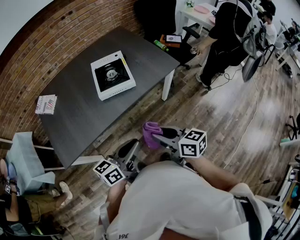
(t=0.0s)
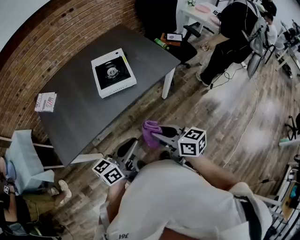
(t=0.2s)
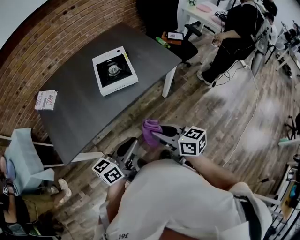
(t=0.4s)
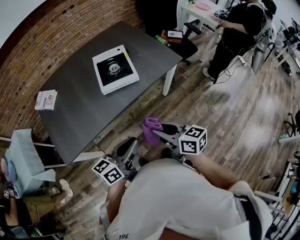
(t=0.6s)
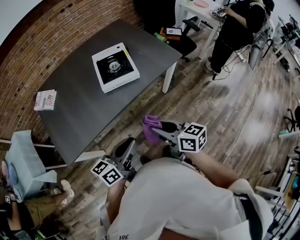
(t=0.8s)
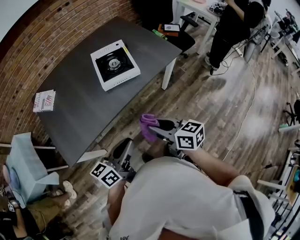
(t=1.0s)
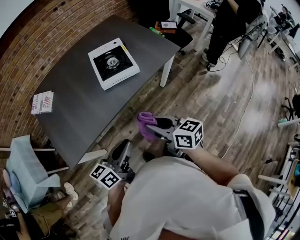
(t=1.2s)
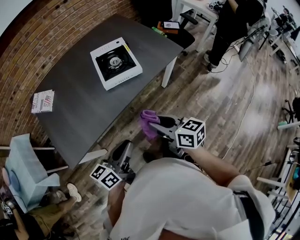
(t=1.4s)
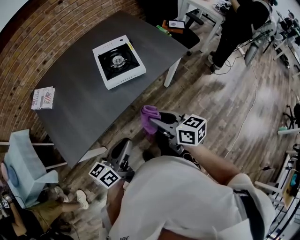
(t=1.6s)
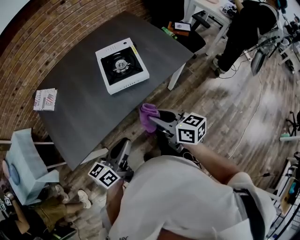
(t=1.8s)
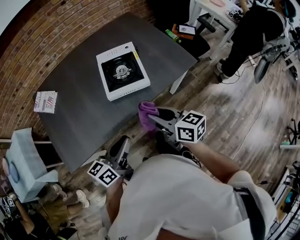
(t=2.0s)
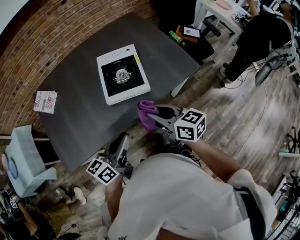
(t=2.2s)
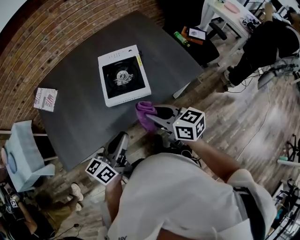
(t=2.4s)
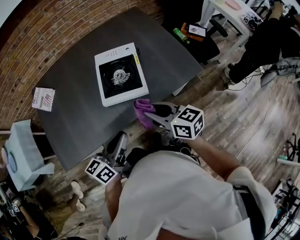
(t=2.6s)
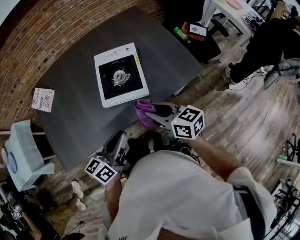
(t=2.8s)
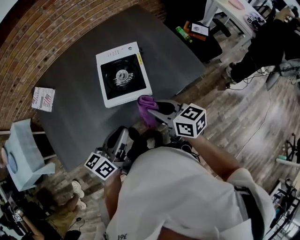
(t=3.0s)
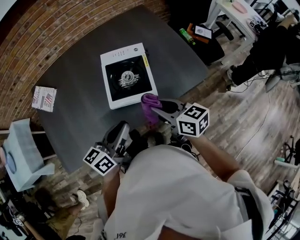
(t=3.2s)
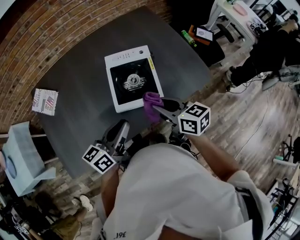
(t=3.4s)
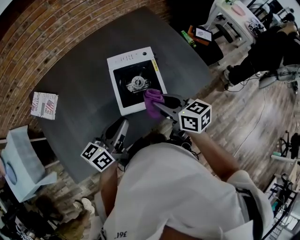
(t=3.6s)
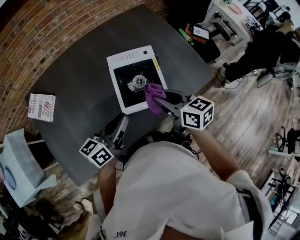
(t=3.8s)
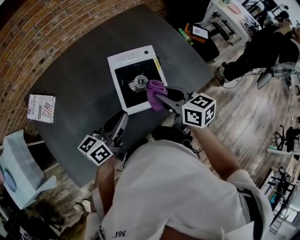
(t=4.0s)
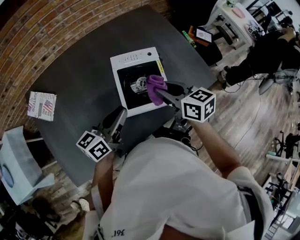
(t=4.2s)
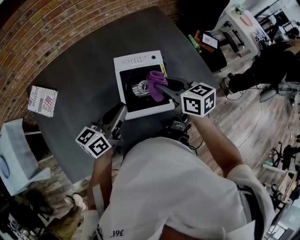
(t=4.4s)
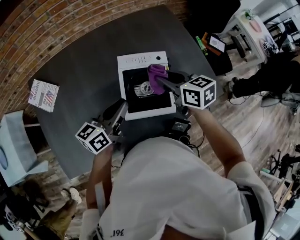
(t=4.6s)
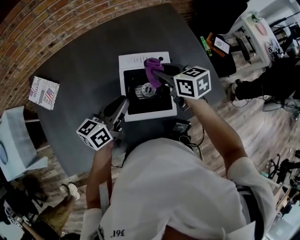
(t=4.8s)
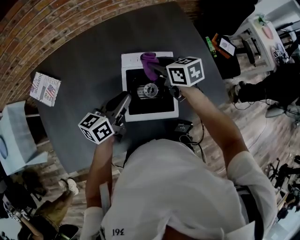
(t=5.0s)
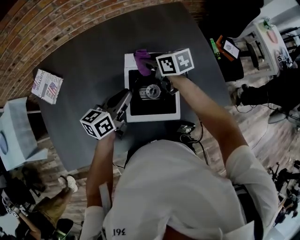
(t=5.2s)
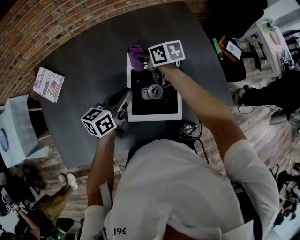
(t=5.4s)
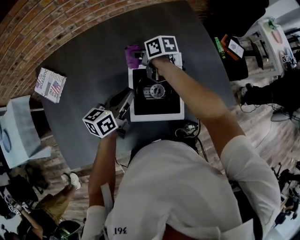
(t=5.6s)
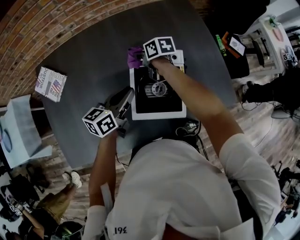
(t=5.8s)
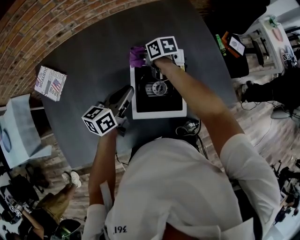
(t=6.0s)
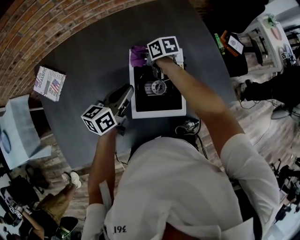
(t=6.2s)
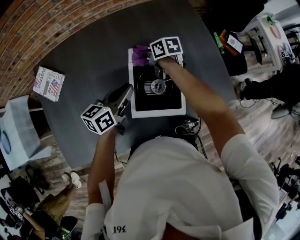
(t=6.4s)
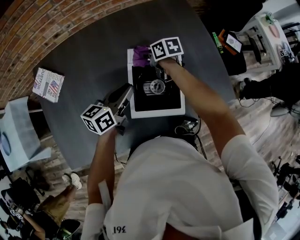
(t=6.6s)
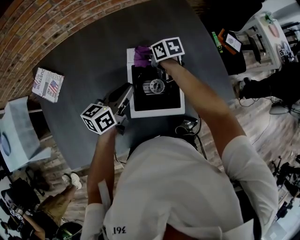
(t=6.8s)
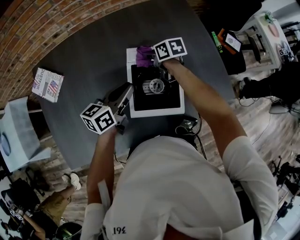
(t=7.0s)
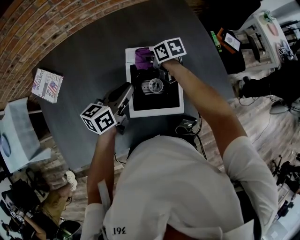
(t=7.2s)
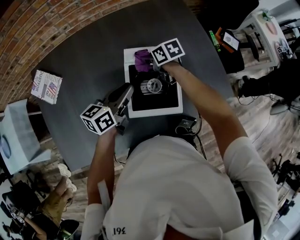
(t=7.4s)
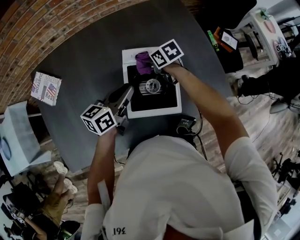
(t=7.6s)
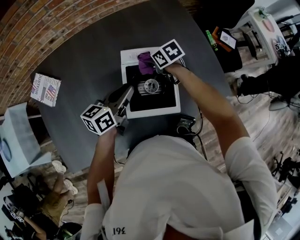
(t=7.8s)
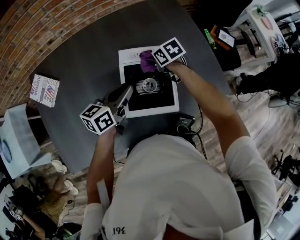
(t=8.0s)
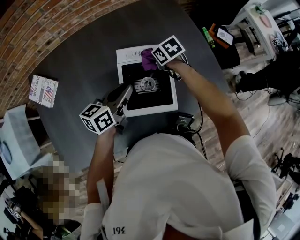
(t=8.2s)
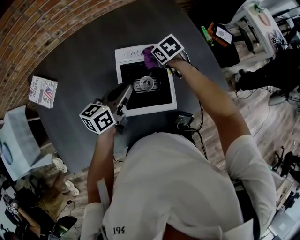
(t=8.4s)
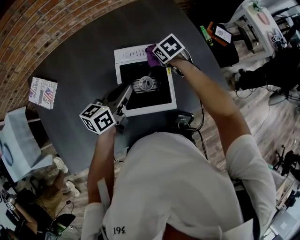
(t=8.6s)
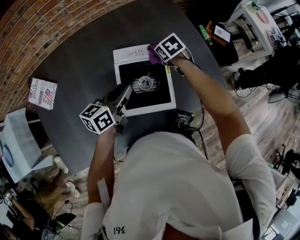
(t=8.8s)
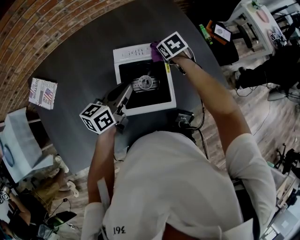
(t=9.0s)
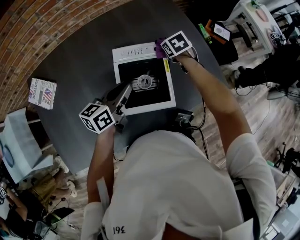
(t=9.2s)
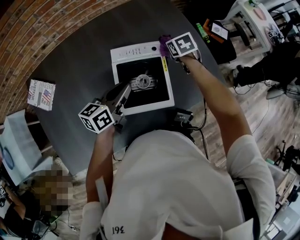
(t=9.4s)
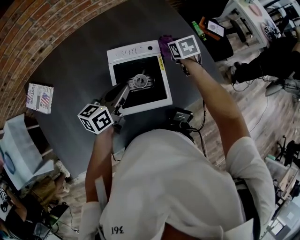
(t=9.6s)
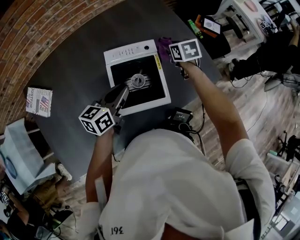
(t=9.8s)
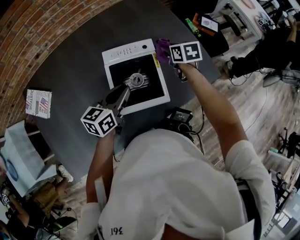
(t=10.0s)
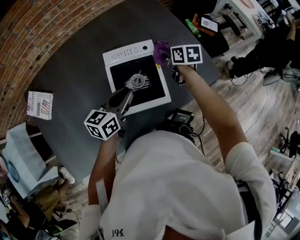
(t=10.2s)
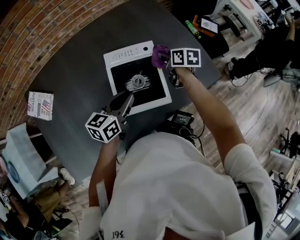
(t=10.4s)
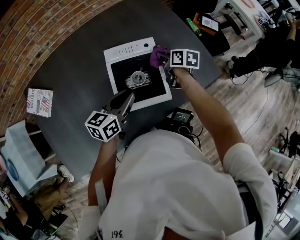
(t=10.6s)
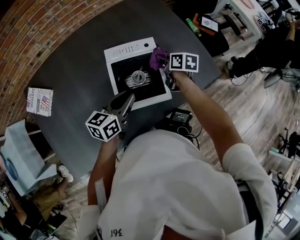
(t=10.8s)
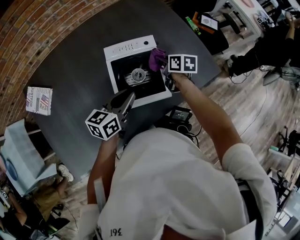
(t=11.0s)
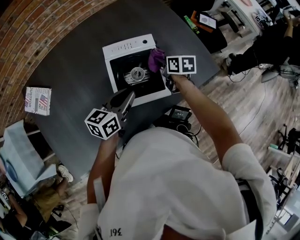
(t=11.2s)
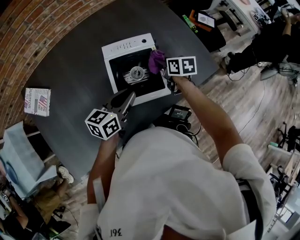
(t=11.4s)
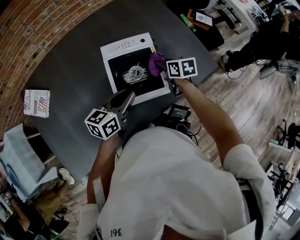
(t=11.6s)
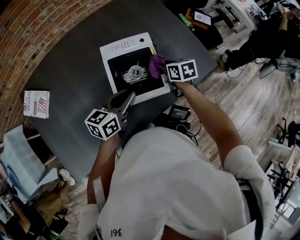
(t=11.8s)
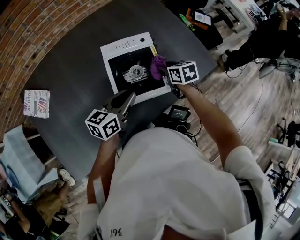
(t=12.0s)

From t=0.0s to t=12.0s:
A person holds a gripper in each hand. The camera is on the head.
From t=0.0s to t=1.6s: The right gripper moves to the left and forward, about 10 cm; the left gripper shifts about 15 cm to the left.
From t=1.6s to t=3.0s: The right gripper shifts about 20 cm forward. The left gripper shifts approximately 20 cm forward and to the right.
From t=3.0s to t=4.4s: The left gripper moves forward and to the left, about 20 cm. Meanwhile the right gripper moves forward, approximately 20 cm.
From t=4.4s to t=6.0s: The left gripper travels forward and downward by about 10 cm, while the right gripper moves forward, downward and to the left, approximately 30 cm, and swivels some 30 degrees.
From t=6.0s to t=7.6s: The right gripper is displaced backward by approximately 5 cm.
From t=7.6s to t=9.0s: The right gripper shifts approximately 10 cm to the right, and swivels approximately 20 degrees.
From t=9.0s to t=10.4s: The right gripper goes roughly 5 cm to the right, and rotates approximately 40 degrees; the left gripper shifts by roughly 5 cm.
From t=10.4s to t=12.0s: The right gripper shifts some 10 cm backward.

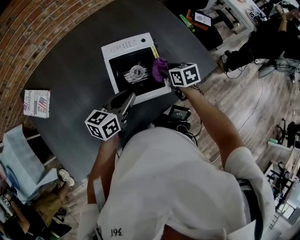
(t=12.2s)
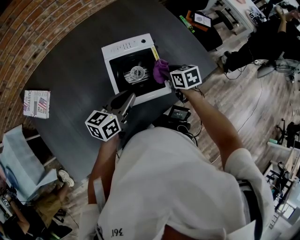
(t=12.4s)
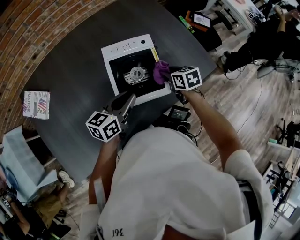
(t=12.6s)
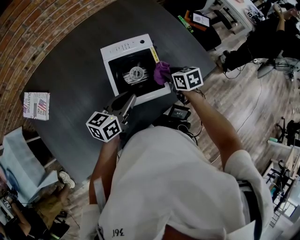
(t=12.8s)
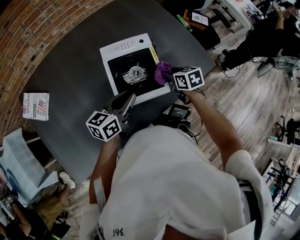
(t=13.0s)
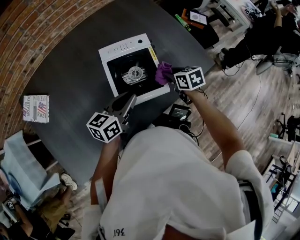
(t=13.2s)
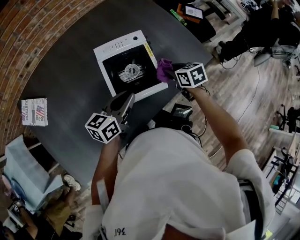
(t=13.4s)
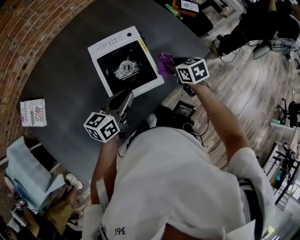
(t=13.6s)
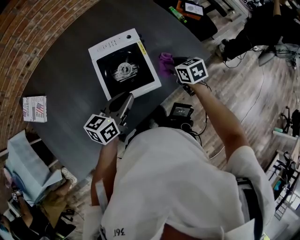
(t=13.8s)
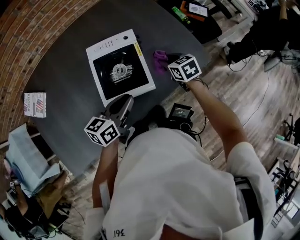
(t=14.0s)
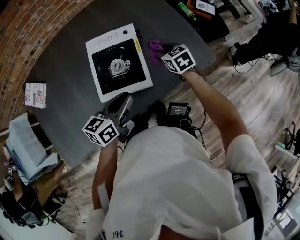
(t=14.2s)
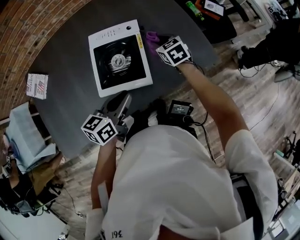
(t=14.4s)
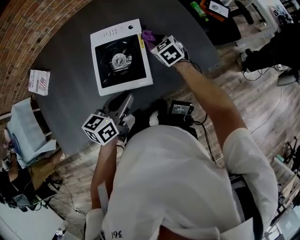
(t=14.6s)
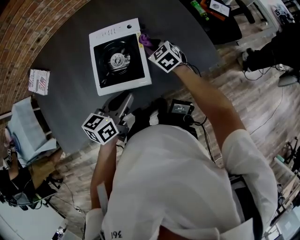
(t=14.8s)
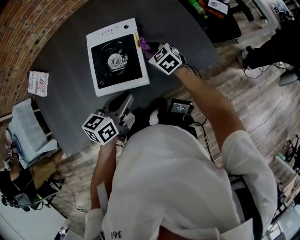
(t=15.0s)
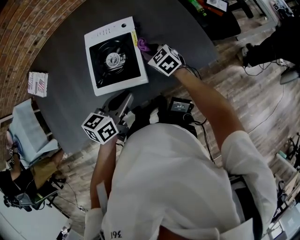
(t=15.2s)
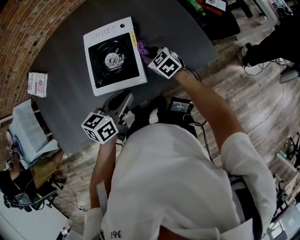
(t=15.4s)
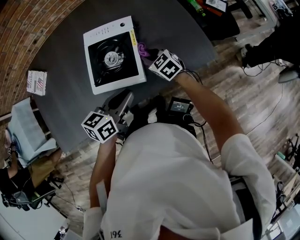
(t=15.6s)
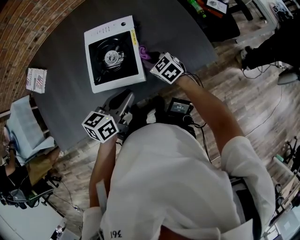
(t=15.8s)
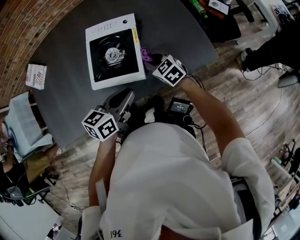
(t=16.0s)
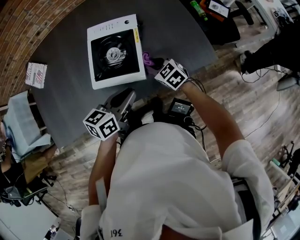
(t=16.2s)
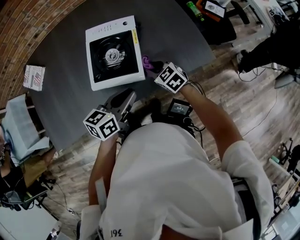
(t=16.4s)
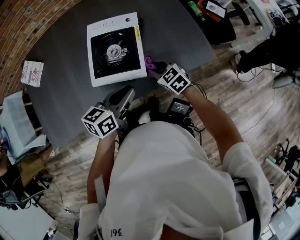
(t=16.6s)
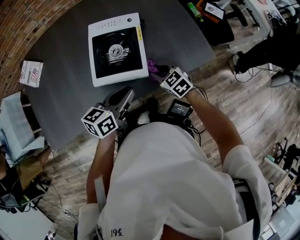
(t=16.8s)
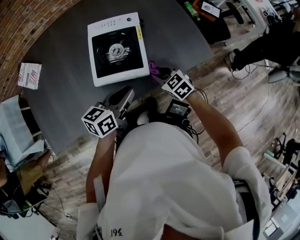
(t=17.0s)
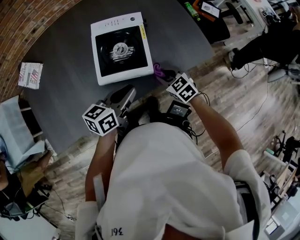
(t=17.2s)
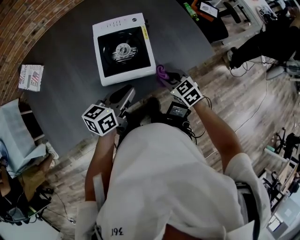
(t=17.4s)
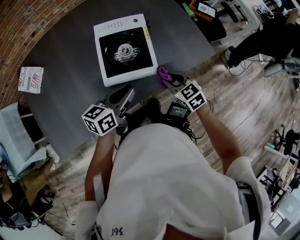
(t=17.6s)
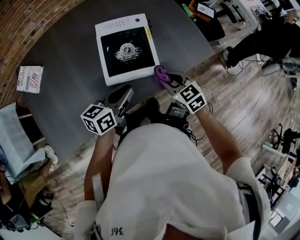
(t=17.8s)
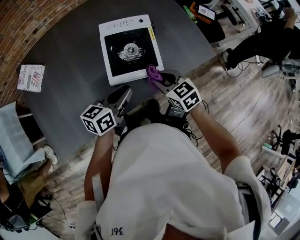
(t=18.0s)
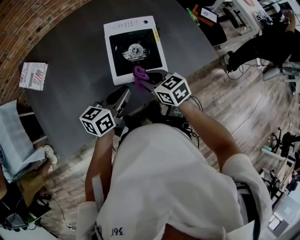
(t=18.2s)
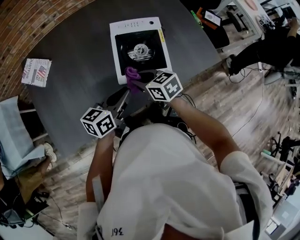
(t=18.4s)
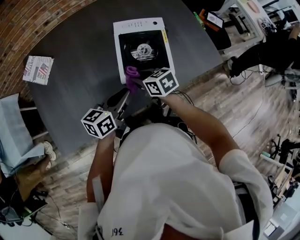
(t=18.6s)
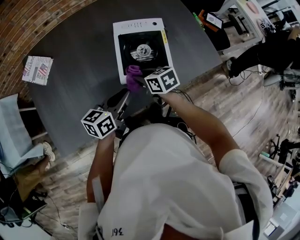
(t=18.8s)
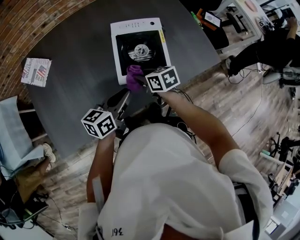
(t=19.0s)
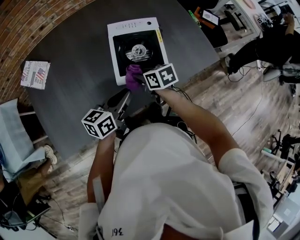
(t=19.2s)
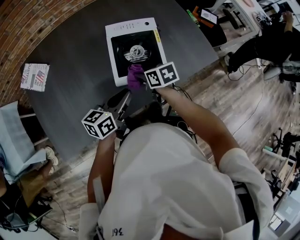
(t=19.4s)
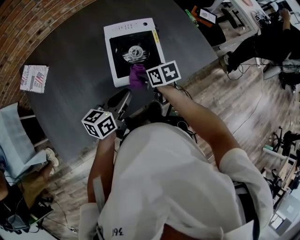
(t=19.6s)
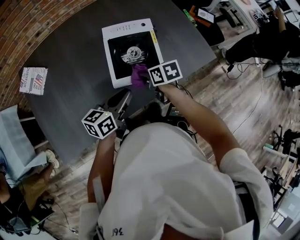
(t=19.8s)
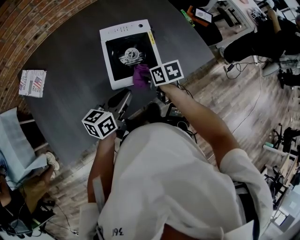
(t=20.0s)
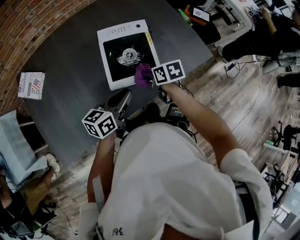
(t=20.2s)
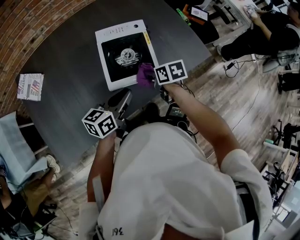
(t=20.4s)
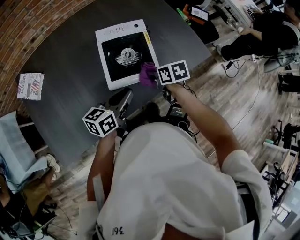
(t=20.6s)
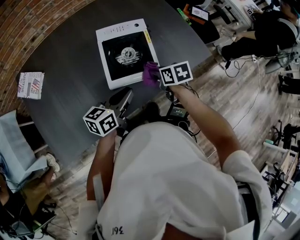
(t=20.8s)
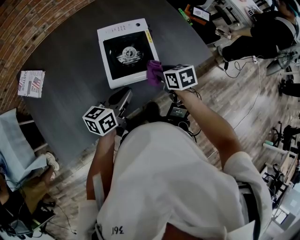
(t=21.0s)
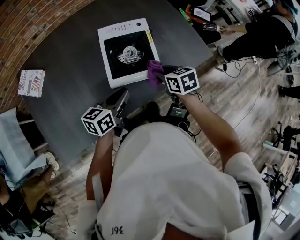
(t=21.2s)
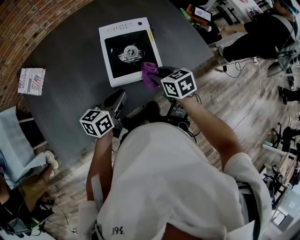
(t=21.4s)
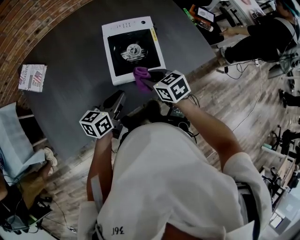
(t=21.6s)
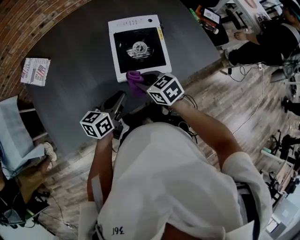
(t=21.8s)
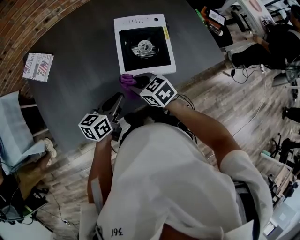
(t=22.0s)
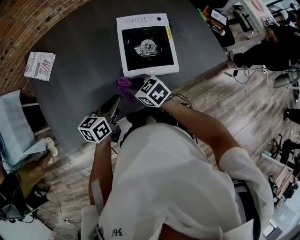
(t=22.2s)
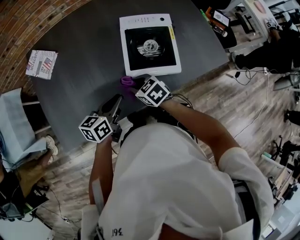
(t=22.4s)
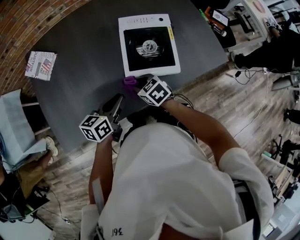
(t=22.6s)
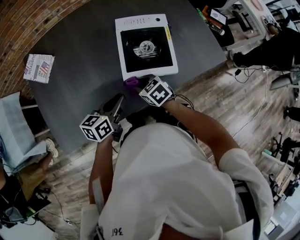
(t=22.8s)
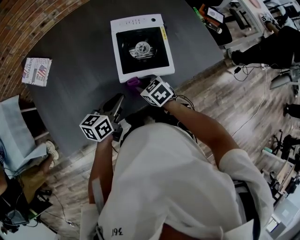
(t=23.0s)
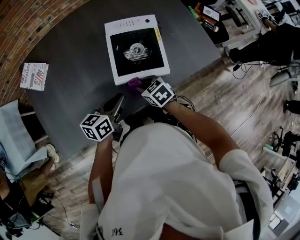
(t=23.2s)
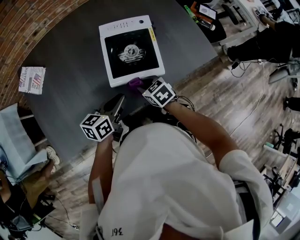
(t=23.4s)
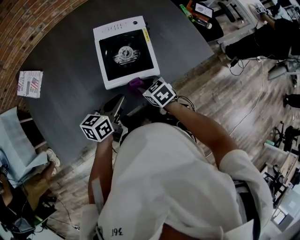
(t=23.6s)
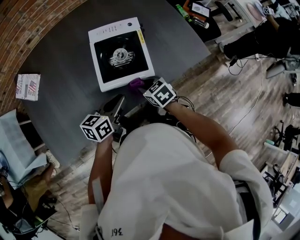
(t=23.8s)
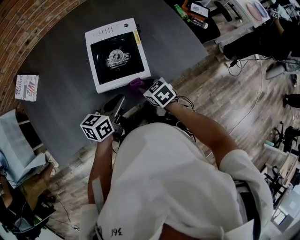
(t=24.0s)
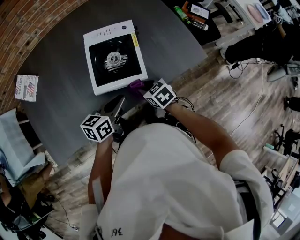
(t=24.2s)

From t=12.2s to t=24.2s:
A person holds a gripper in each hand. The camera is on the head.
From t=12.2s to t=13.8s: The right gripper moves to the right, roughly 10 cm.
From t=13.8s to t=15.2s: The right gripper travels to the left and forward by approximately 10 cm, and swivels roughly 30 degrees; the left gripper is displaced to the right by about 10 cm.
From t=15.2s to t=16.6s: The right gripper travels backward by approximately 10 cm.
From t=16.6s to t=18.2s: The left gripper travels to the left by some 15 cm, while the right gripper shifts approximately 15 cm to the left, upward and backward.
From t=18.2s to t=19.8s: The right gripper travels to the left and back again, approximately 5 cm each way, and changes its angle by roughly 30 degrees.
From t=19.8s to t=21.2s: The right gripper is displaced to the right by some 5 cm.
From t=21.2s to t=22.6s: The right gripper goes some 20 cm to the left, and turns by some 30 degrees. The left gripper travels to the left by some 10 cm.
From t=22.6s to t=24.2s: The grippers both shift to the right by approximately 15 cm.
